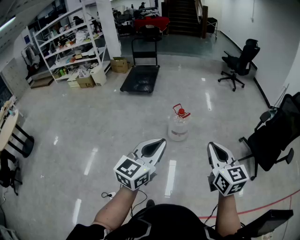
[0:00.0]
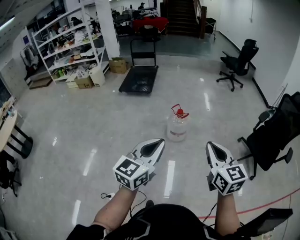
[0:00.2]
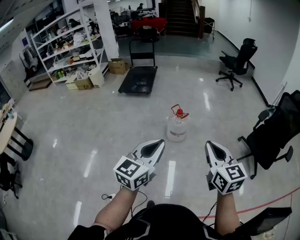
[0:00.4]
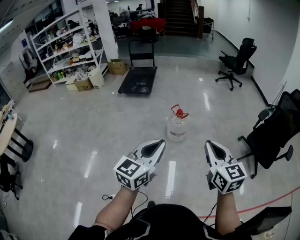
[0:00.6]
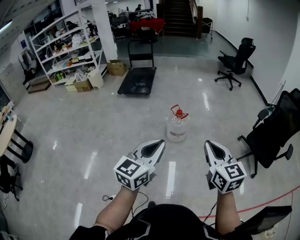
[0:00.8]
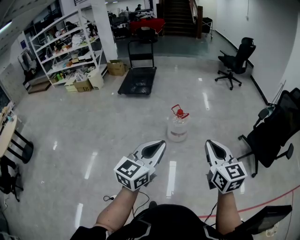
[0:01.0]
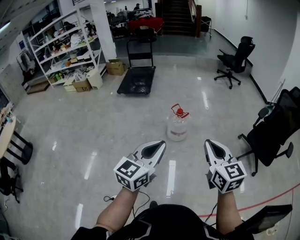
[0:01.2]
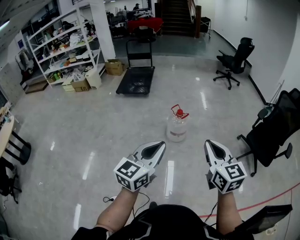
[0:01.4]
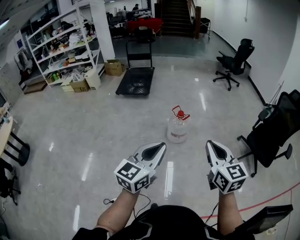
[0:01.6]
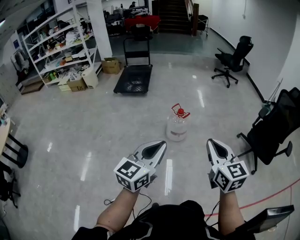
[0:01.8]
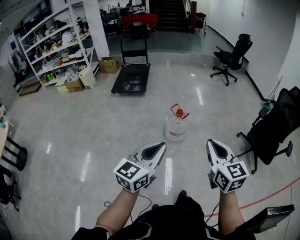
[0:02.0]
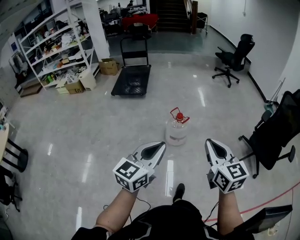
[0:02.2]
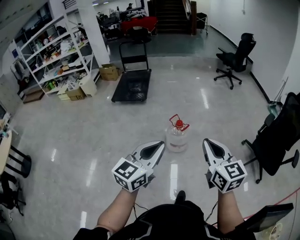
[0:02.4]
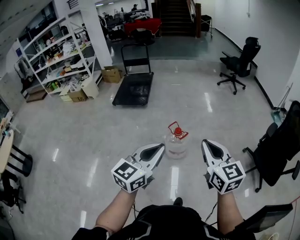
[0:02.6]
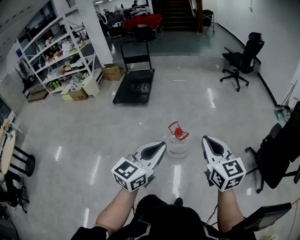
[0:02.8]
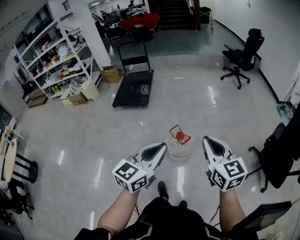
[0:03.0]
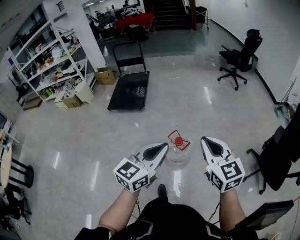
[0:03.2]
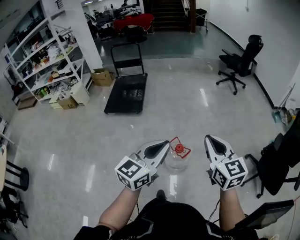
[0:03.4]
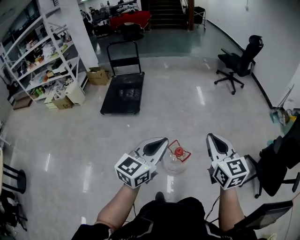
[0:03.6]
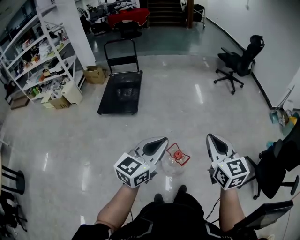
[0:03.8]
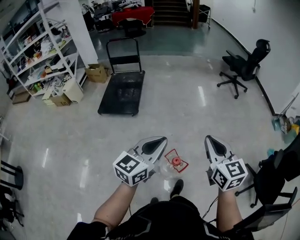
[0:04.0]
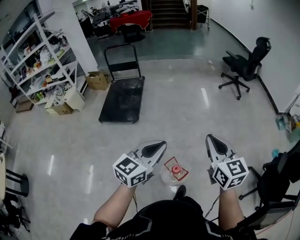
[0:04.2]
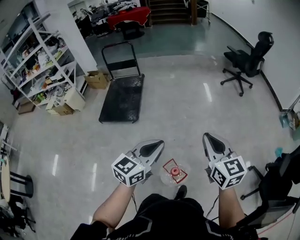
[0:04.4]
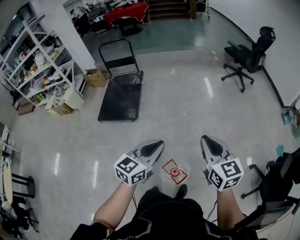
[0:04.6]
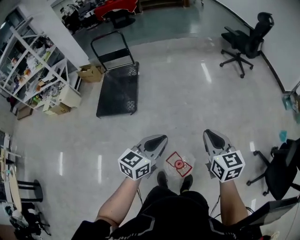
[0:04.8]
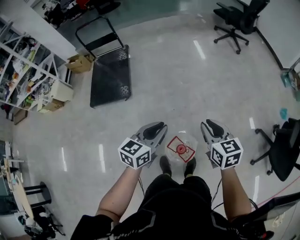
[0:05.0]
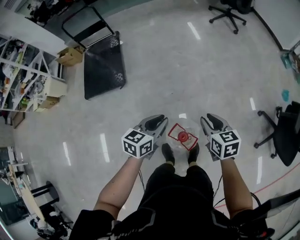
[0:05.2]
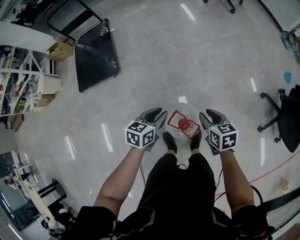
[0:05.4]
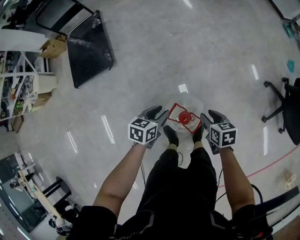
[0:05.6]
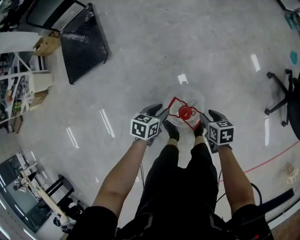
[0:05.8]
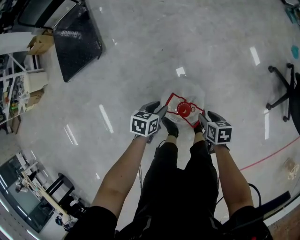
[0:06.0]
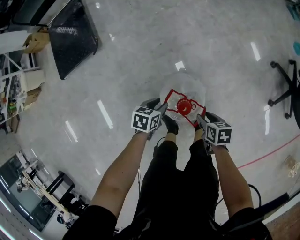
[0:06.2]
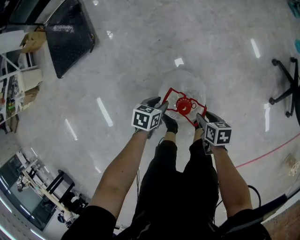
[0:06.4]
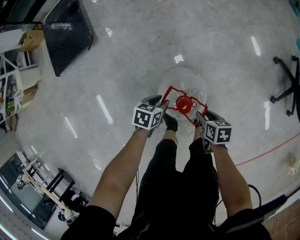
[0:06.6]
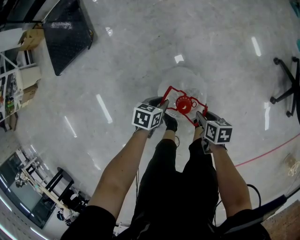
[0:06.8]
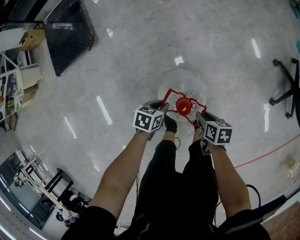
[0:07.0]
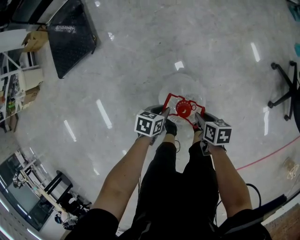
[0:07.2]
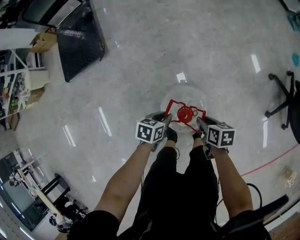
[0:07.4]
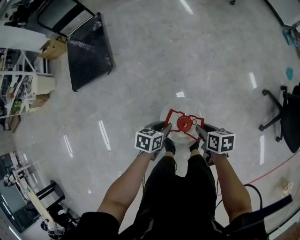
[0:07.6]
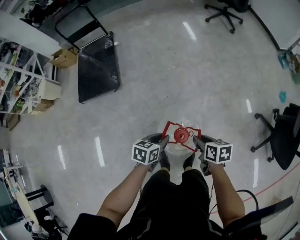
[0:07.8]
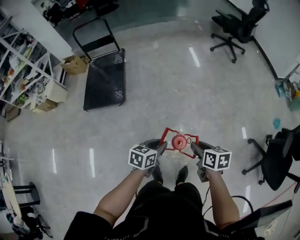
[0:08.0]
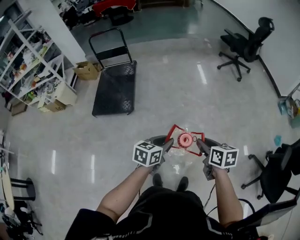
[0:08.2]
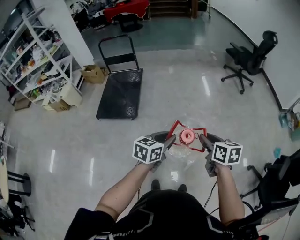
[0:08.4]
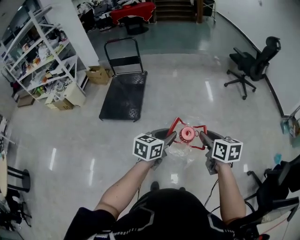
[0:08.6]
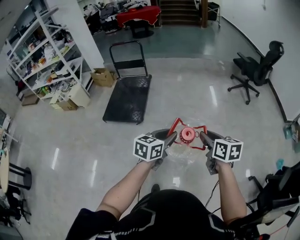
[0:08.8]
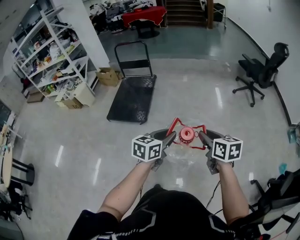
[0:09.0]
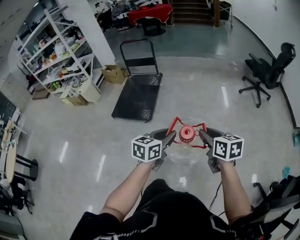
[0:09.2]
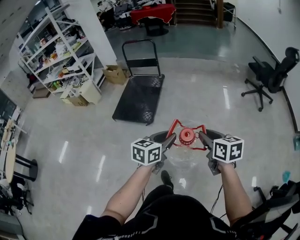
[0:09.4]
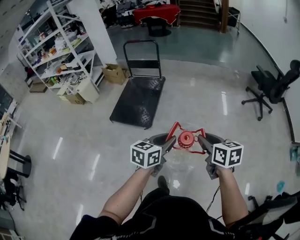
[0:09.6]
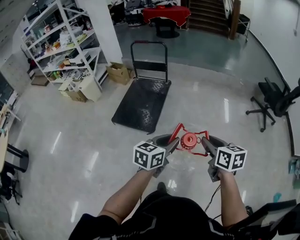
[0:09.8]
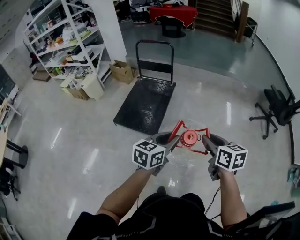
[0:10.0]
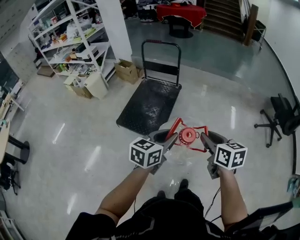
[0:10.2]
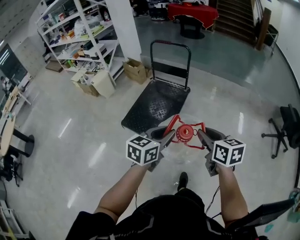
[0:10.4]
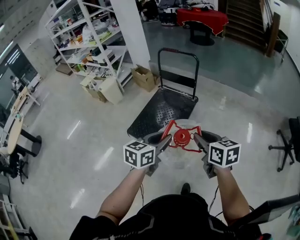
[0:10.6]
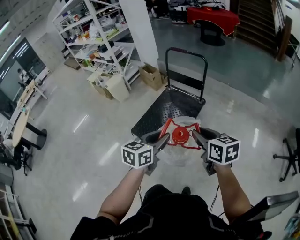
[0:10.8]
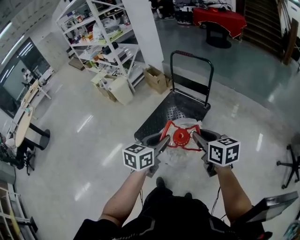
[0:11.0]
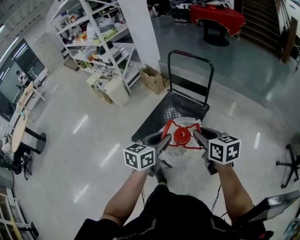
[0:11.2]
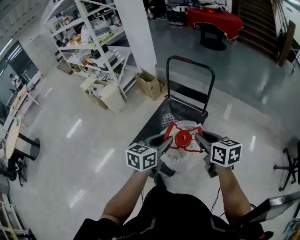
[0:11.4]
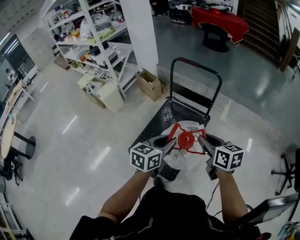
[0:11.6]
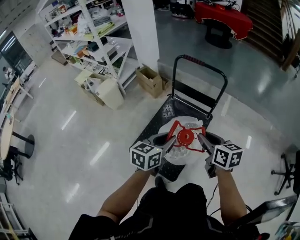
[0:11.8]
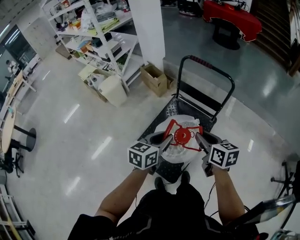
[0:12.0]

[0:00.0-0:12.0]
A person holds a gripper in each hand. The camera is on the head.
0:00.0 to 0:01.6: Both grippers travel together to the left, roughly 5 cm.
0:01.6 to 0:03.0: The grippers both shift forward by about 35 cm.
0:03.0 to 0:04.4: Both grippers move forward, approximately 40 cm.
0:04.4 to 0:06.0: Both grippers move downward, some 60 cm. The left gripper points its fingers about 40 degrees further downward, and opens up. The right gripper tips its fingers downward by some 50 degrees, and opens its fingers.
0:06.0 to 0:07.6: The grippers both shift upward by roughly 10 cm.
0:07.6 to 0:09.0: The left gripper goes approximately 40 cm upward, and changes its angle by roughly 40 degrees; the right gripper heads upward and forward, covering approximately 40 cm, and turns by about 40 degrees.
0:09.0 to 0:10.4: The pair of grippers is taken forward and to the left, approximately 50 cm.
0:10.4 to 0:12.0: The pair of grippers is taken forward, some 50 cm.

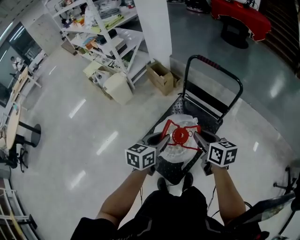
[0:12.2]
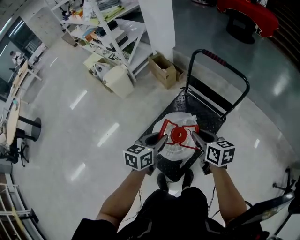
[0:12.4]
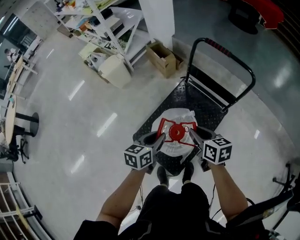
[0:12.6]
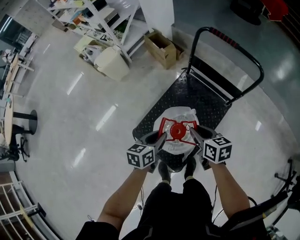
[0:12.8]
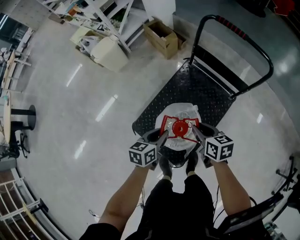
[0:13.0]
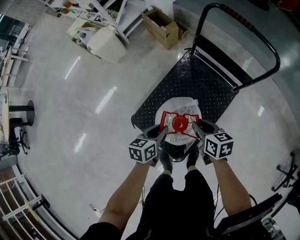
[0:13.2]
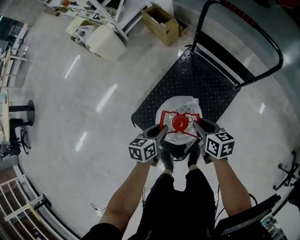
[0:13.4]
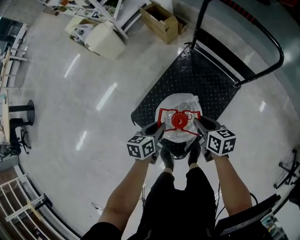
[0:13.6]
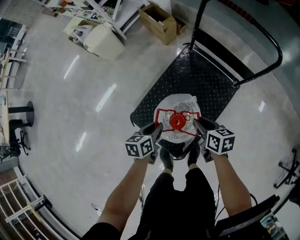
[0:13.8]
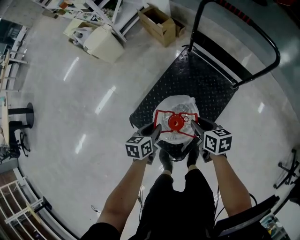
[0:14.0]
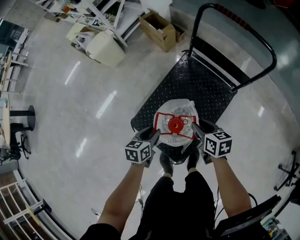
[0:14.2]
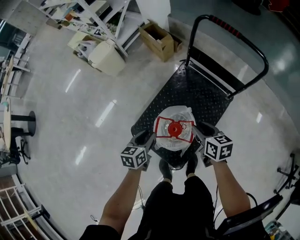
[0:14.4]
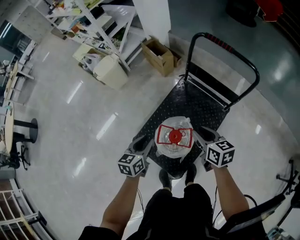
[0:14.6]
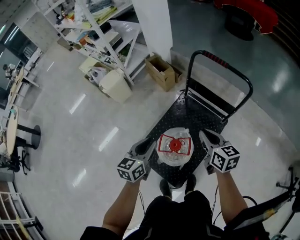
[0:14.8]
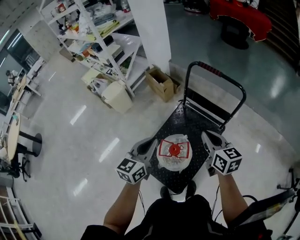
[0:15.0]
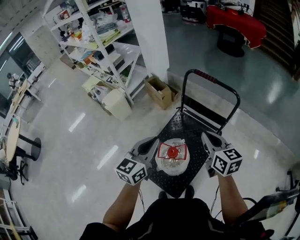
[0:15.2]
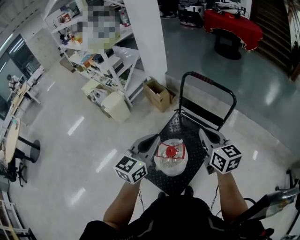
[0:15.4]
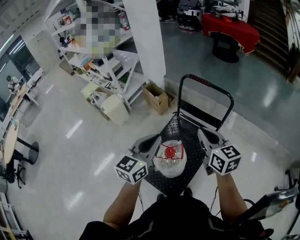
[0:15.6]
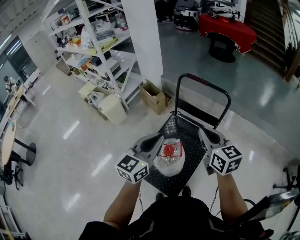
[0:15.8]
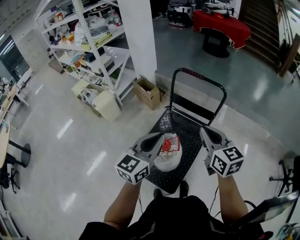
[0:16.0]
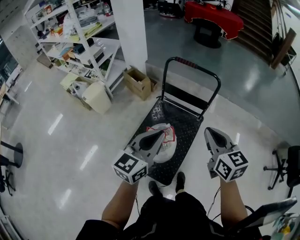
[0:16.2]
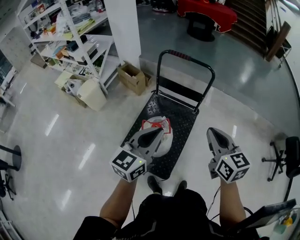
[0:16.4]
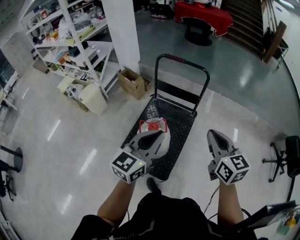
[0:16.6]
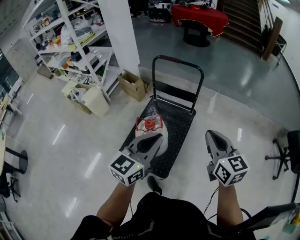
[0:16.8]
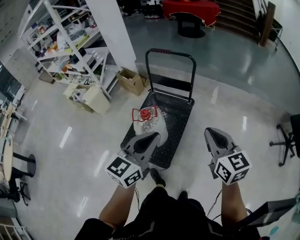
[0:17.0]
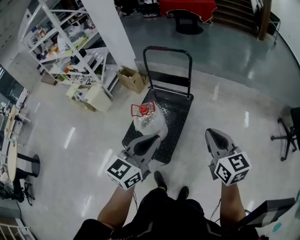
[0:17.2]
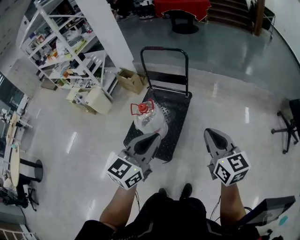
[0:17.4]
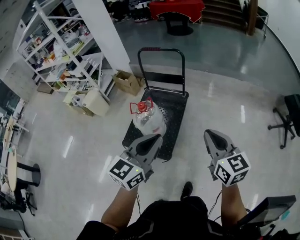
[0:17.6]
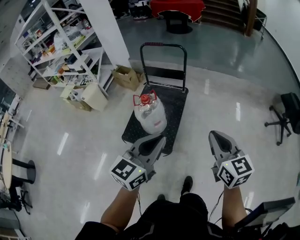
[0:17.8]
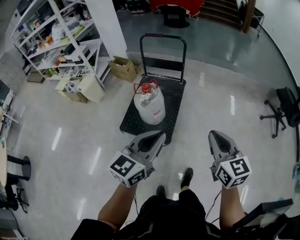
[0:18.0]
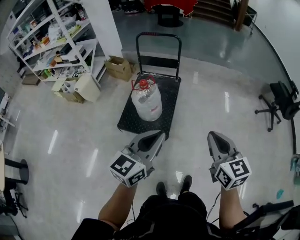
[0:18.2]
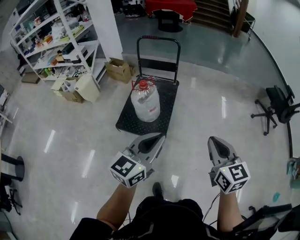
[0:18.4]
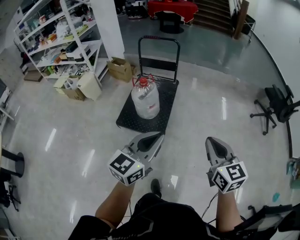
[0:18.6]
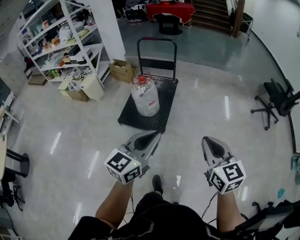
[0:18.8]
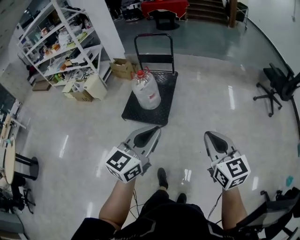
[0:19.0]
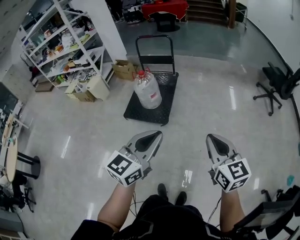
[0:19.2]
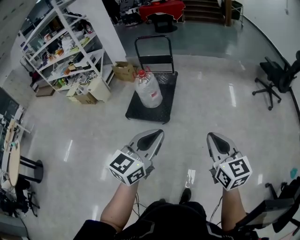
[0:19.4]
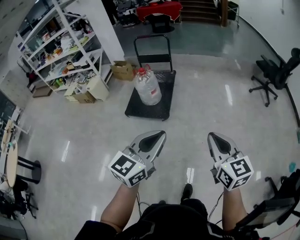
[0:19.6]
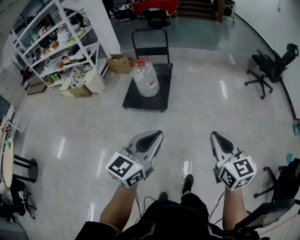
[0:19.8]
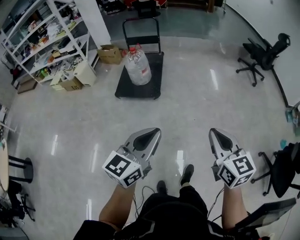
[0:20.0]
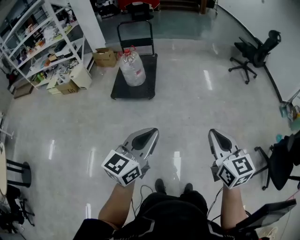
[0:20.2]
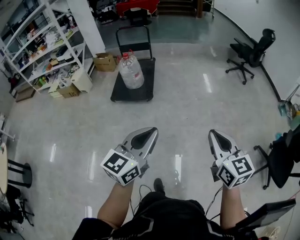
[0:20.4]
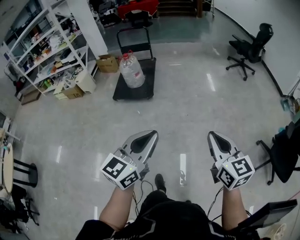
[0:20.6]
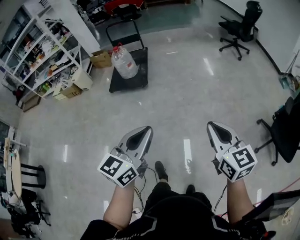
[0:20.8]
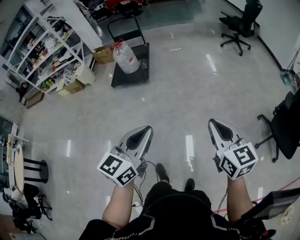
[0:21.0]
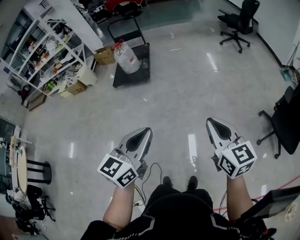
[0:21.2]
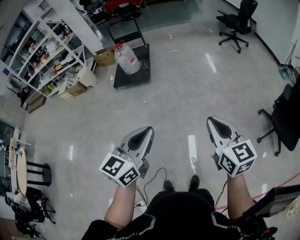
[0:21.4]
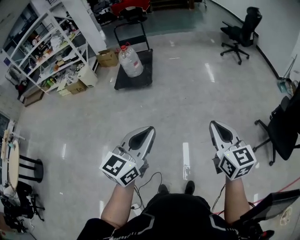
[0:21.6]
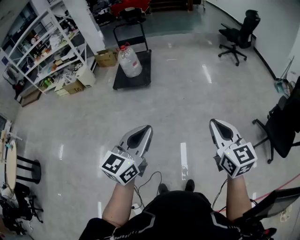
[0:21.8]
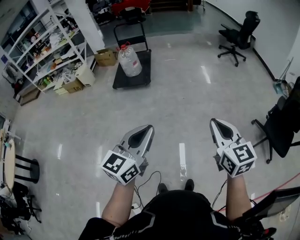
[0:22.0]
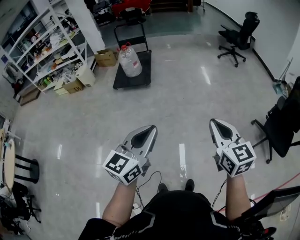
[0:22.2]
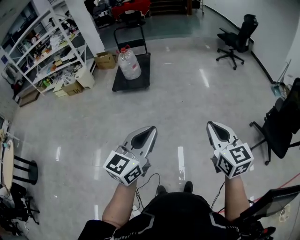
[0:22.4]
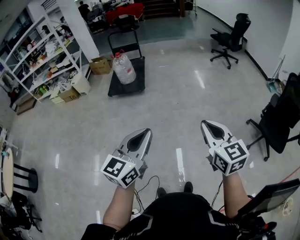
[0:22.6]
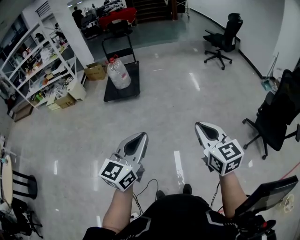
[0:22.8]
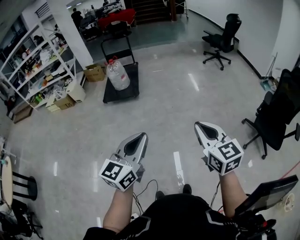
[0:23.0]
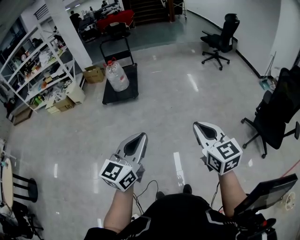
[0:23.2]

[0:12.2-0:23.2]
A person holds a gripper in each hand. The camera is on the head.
0:12.2 to 0:13.8: The two grippers go some 30 cm downward. The left gripper changes its angle by roughly 30 degrees.
0:13.8 to 0:15.4: The two grippers go some 40 cm upward. The left gripper tips its fingers upward by some 40 degrees. The right gripper rotates about 40 degrees, and closes its fingers.
0:15.4 to 0:17.0: Both grippers move backward and to the right, some 35 cm.
0:17.0 to 0:18.4: The two grippers go about 35 cm backward.
0:18.4 to 0:20.0: The two grippers travel together, backward, approximately 50 cm.
0:20.0 to 0:21.6: Both grippers move backward and to the right, about 40 cm.
0:21.6 to 0:23.2: The left gripper moves approximately 5 cm. Meanwhile the right gripper shifts by some 5 cm.

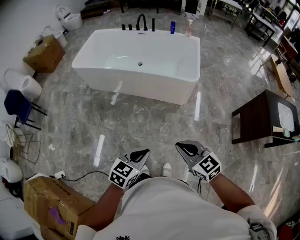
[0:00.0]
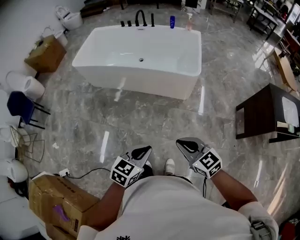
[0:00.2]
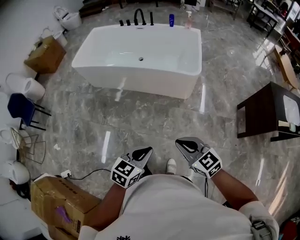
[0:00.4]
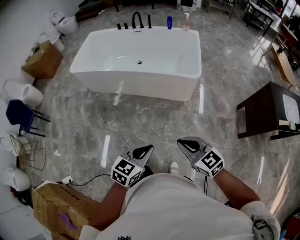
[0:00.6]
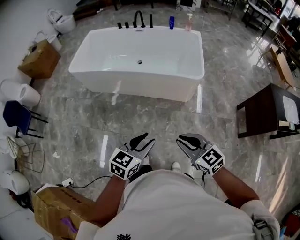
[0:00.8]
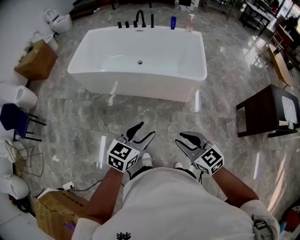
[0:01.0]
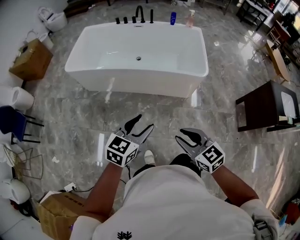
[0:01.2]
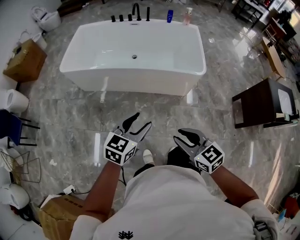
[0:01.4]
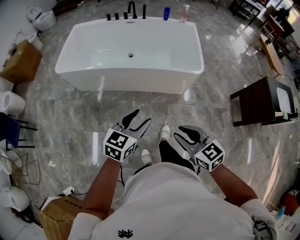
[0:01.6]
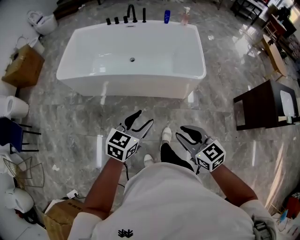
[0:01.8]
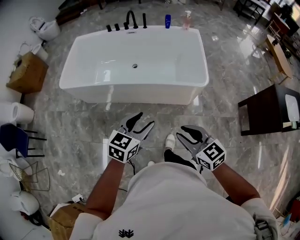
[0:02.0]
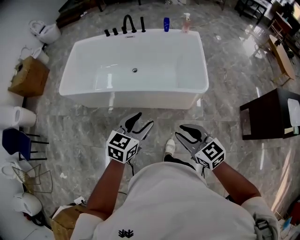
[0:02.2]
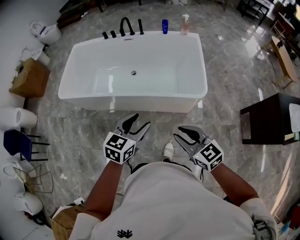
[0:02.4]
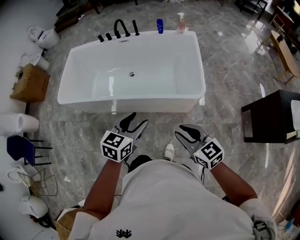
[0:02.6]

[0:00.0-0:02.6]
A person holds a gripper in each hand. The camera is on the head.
0:00.0 to 0:01.2: The left gripper heads forward and to the left, covering roughly 25 cm, and opens its fingers; the right gripper goes about 20 cm to the left and forward, and opens up.
0:01.2 to 0:02.6: The grippers both shift forward and to the right by about 30 cm.
